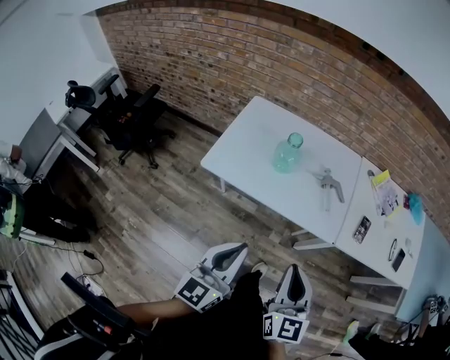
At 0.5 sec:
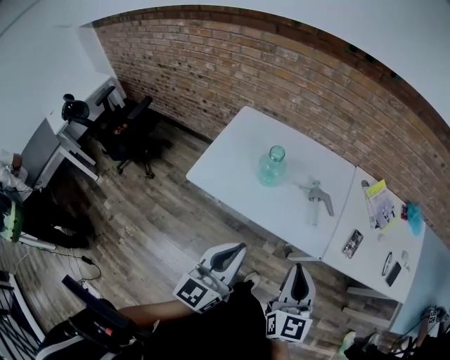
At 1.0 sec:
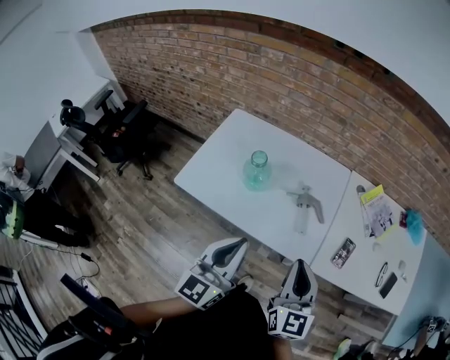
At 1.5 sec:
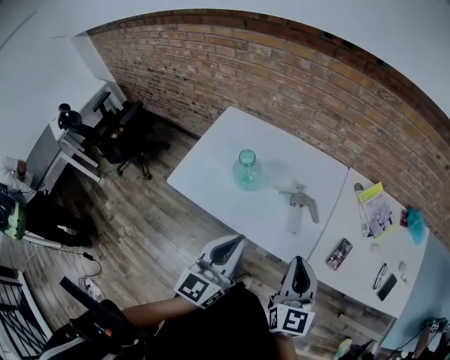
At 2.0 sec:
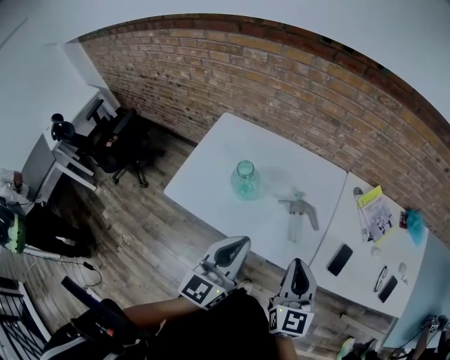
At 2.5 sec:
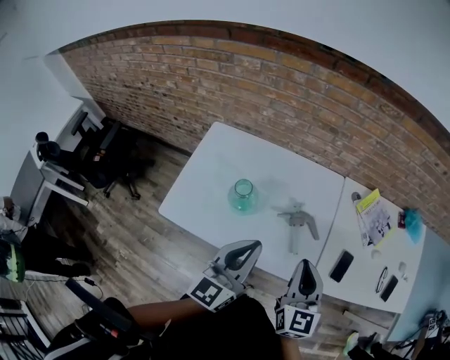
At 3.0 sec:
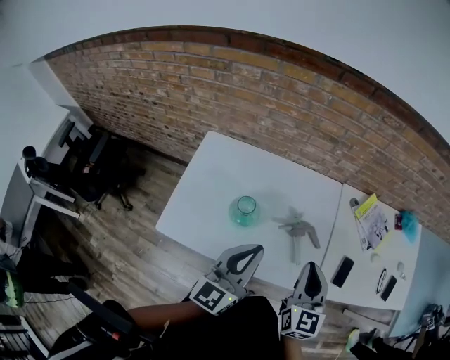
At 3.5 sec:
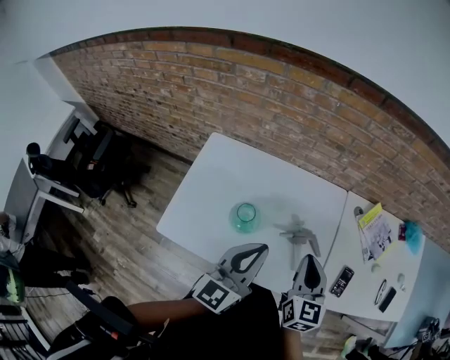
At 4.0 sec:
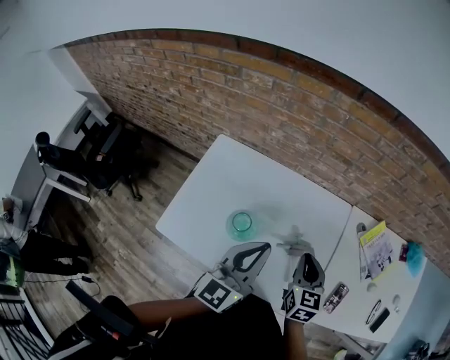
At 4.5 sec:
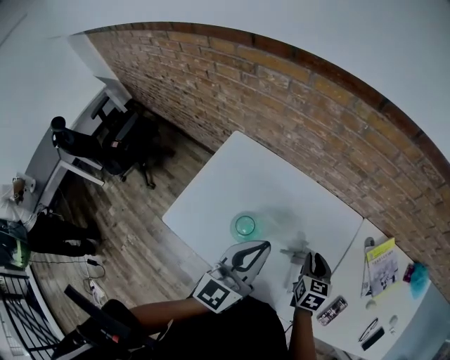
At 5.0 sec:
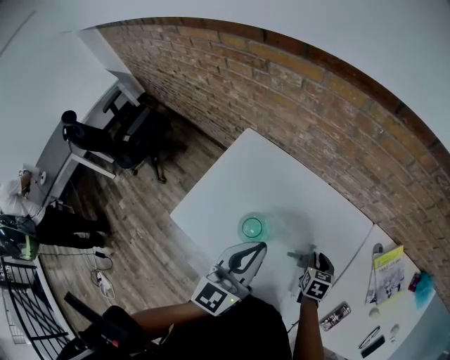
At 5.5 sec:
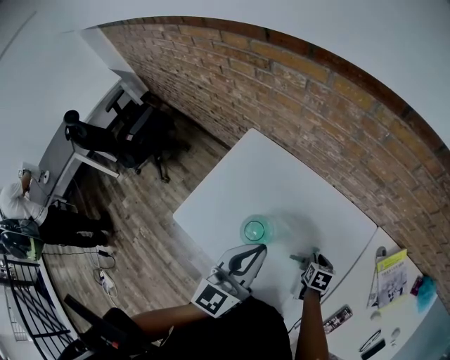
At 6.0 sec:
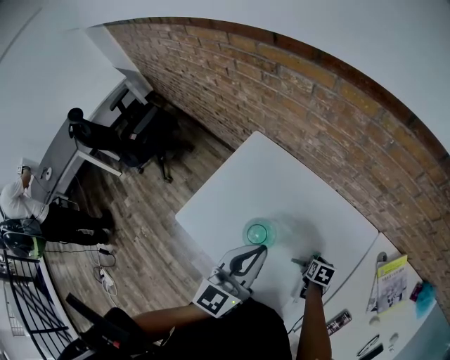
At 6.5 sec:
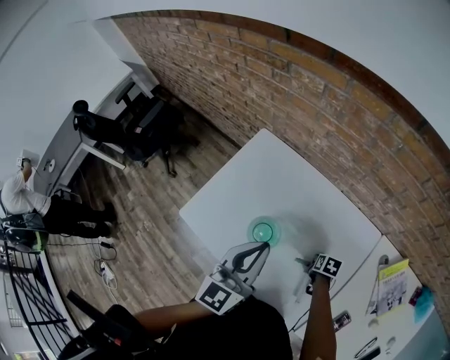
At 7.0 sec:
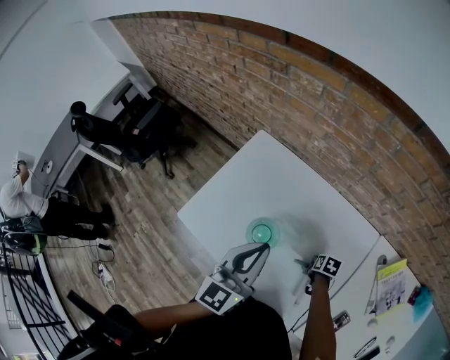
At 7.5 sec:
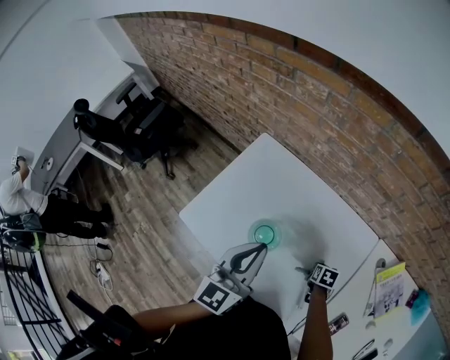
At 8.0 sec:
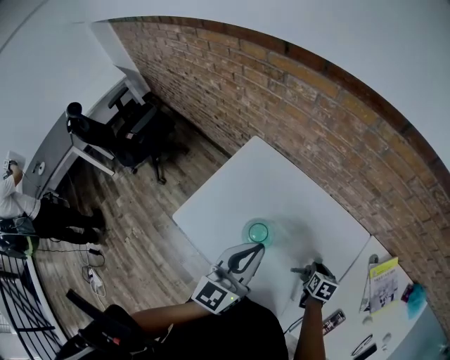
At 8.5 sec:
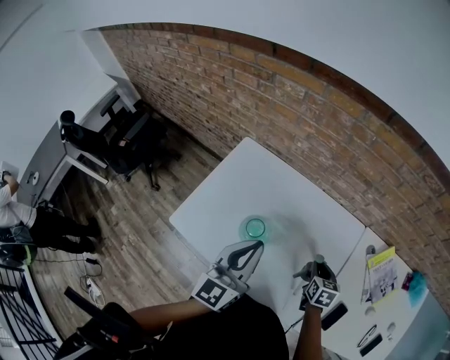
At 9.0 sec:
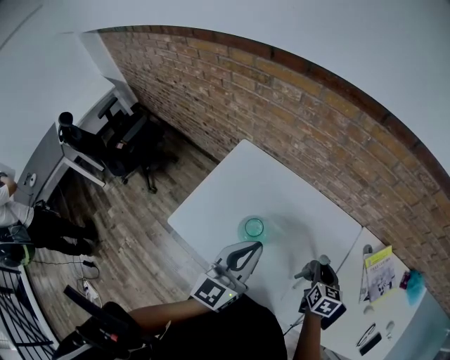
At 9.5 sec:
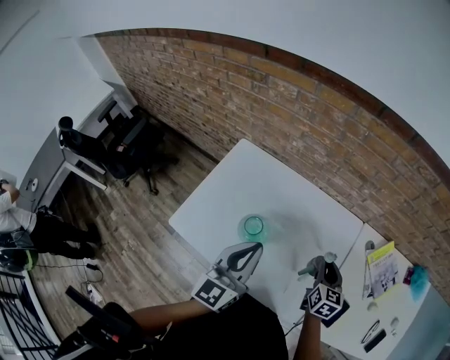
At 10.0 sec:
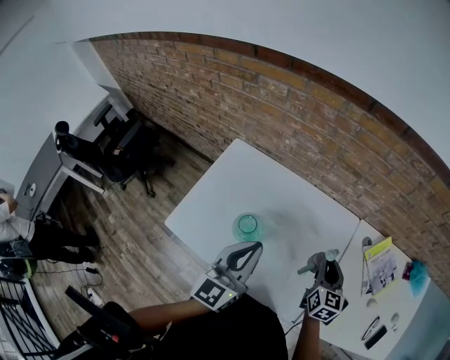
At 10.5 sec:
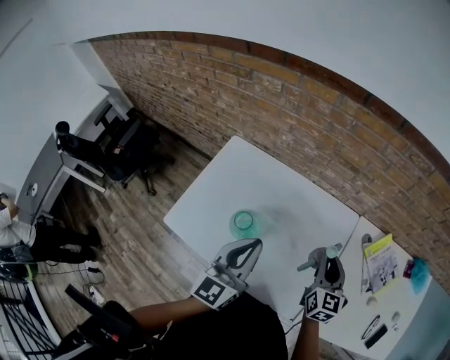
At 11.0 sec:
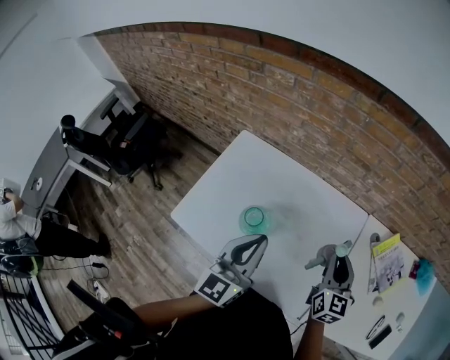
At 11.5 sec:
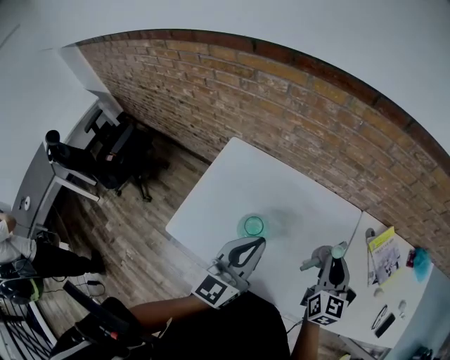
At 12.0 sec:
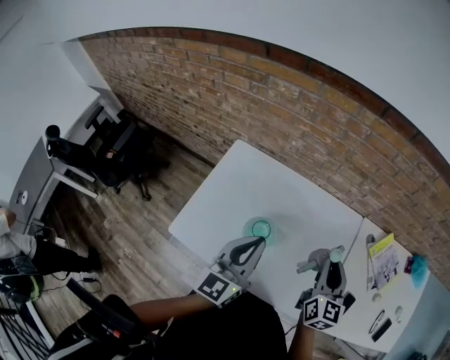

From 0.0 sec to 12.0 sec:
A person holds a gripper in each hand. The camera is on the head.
From 0.0 sec to 2.0 sec: The grippers both shift forward and to the right by about 25 cm.
From 2.0 sec to 4.0 sec: The two grippers go approximately 20 cm forward.
From 4.0 sec to 6.0 sec: The left gripper ends up some 5 cm from where it was. The right gripper is displaced downward by approximately 25 cm, and tips its fingers downward by roughly 40 degrees.
From 6.0 sec to 8.0 sec: The right gripper shifts roughly 5 cm upward.
From 8.0 sec to 10.0 sec: The right gripper travels upward by roughly 15 cm, and tips its fingers upward by approximately 30 degrees.
From 10.0 sec to 12.0 sec: The left gripper heads to the left, covering approximately 5 cm. The right gripper shifts approximately 10 cm upward and to the left.

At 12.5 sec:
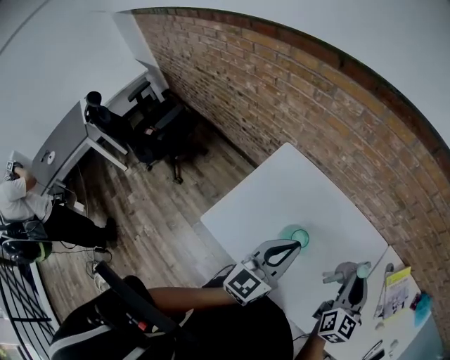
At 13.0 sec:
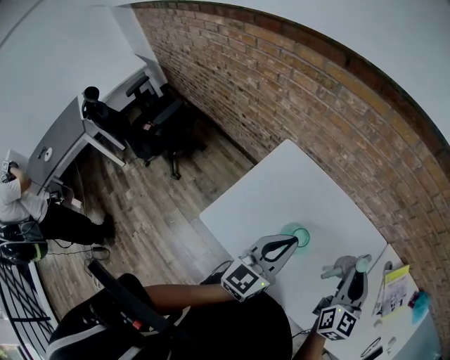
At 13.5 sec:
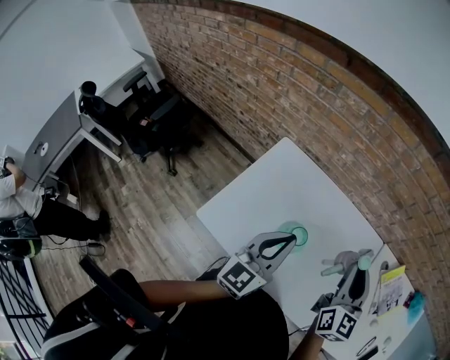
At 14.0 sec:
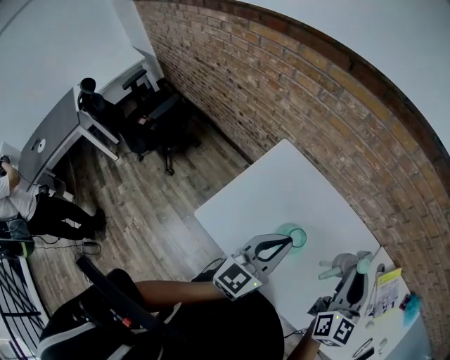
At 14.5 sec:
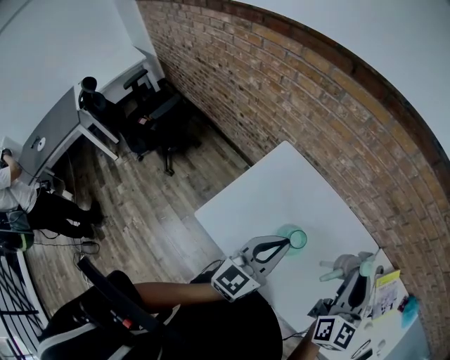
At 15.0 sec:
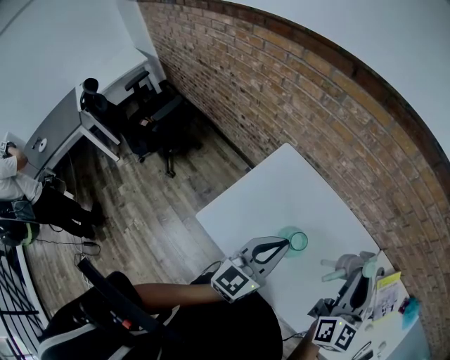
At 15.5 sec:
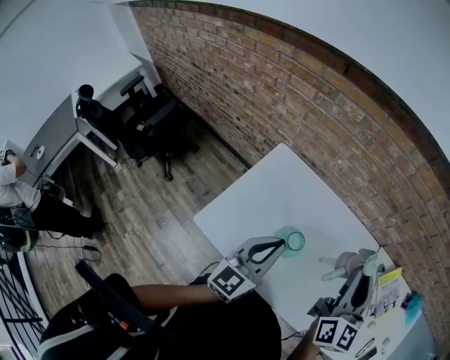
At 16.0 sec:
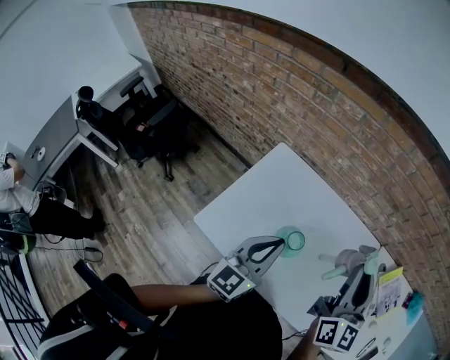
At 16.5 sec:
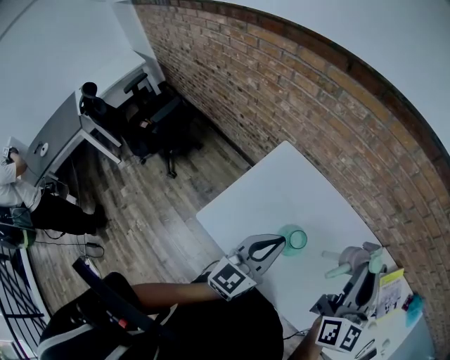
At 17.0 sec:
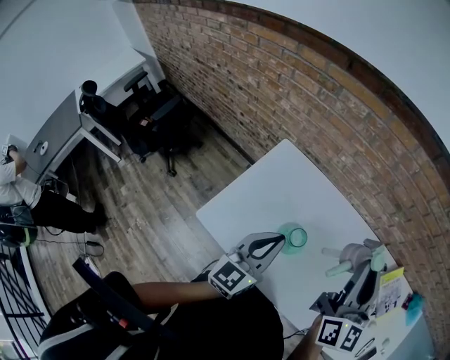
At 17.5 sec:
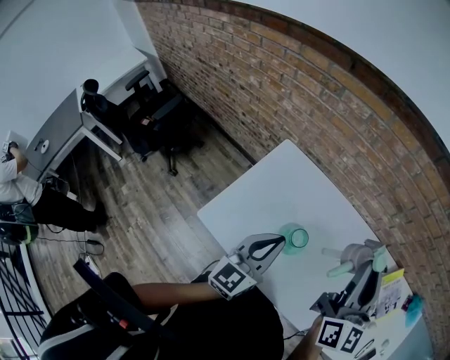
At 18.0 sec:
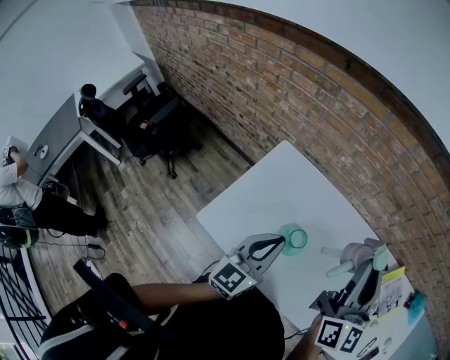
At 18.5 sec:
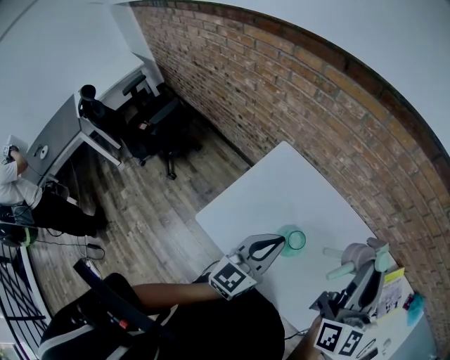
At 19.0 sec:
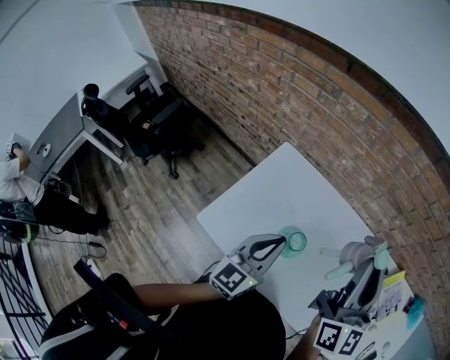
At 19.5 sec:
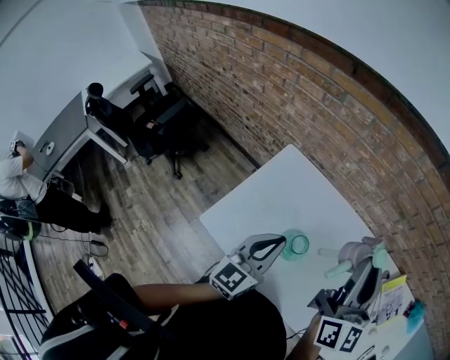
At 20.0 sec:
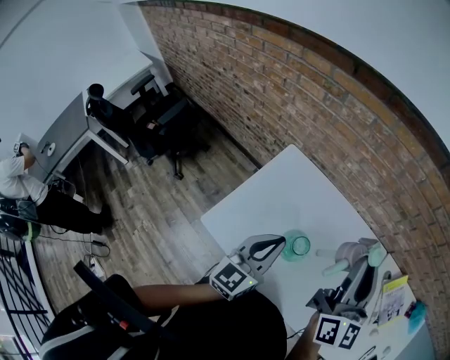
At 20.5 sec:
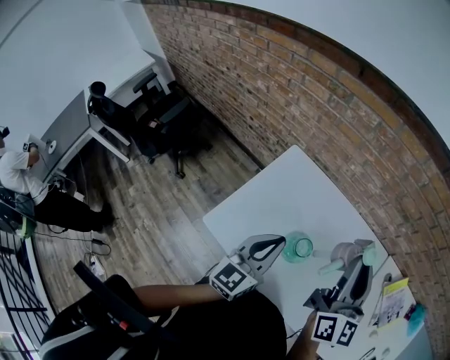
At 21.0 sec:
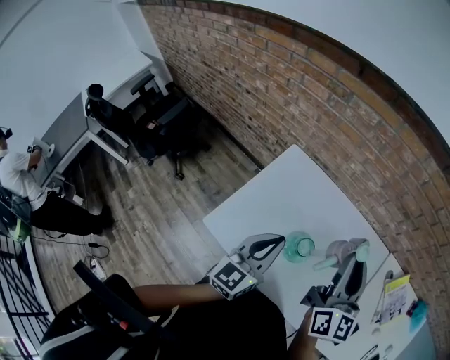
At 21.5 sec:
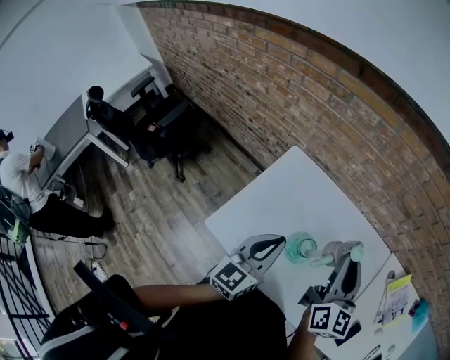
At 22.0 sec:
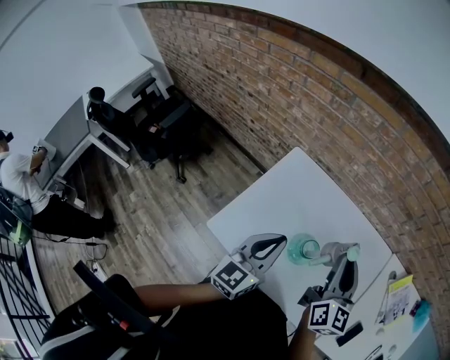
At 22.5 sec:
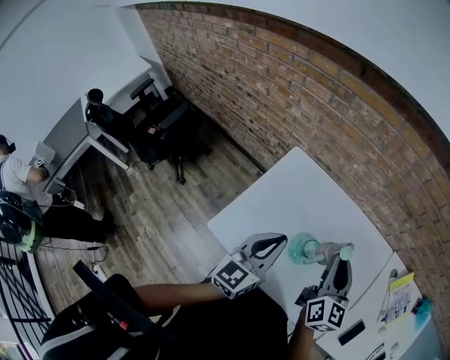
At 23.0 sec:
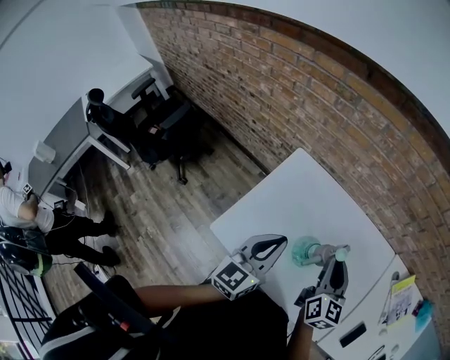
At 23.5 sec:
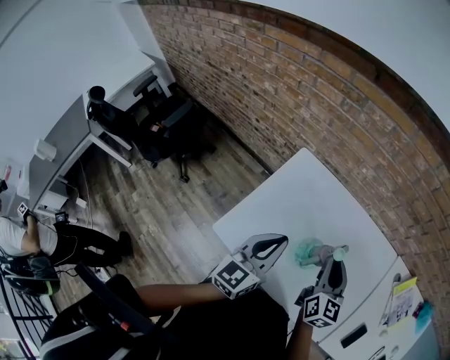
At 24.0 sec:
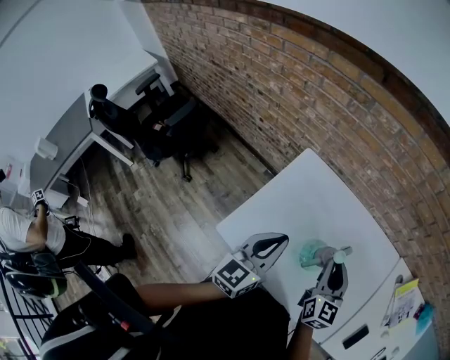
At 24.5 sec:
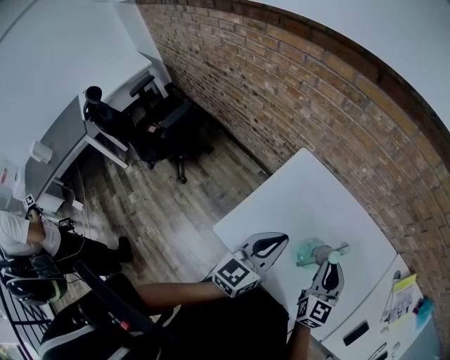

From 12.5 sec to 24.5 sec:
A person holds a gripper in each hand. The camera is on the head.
From 12.5 sec to 14.5 sec: The right gripper is displaced upward and to the left by some 10 cm.
From 14.5 sec to 16.5 sec: There are only small adjustments of the grippers.
From 16.5 sec to 18.5 sec: The grippers make only small movements.
From 18.5 sec to 20.5 sec: The right gripper goes roughly 5 cm downward.
From 20.5 sec to 22.5 sec: The right gripper is displaced downward by approximately 10 cm.
From 22.5 sec to 24.5 sec: The right gripper moves downward, approximately 5 cm.

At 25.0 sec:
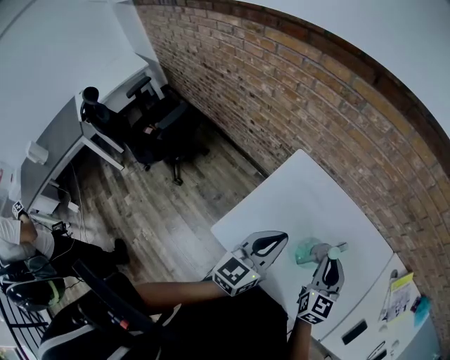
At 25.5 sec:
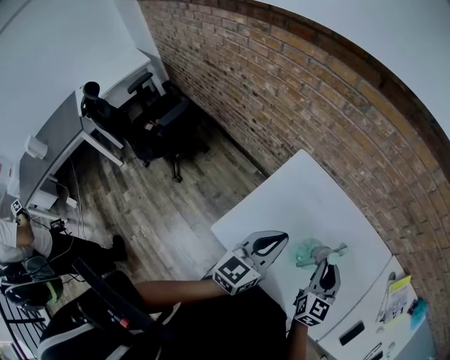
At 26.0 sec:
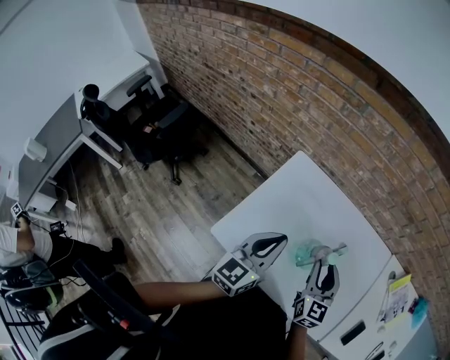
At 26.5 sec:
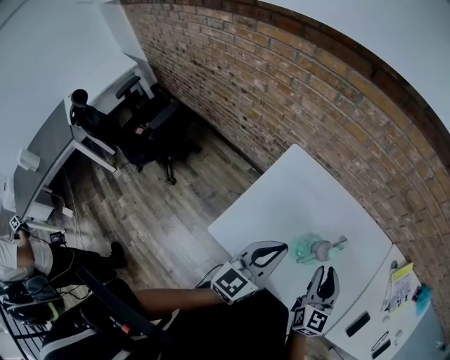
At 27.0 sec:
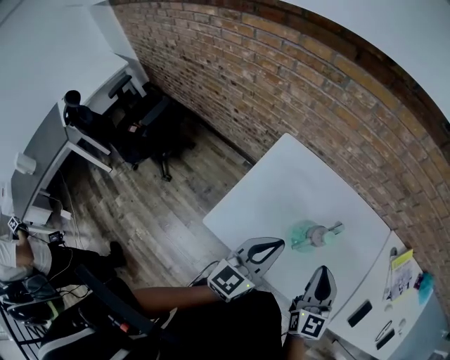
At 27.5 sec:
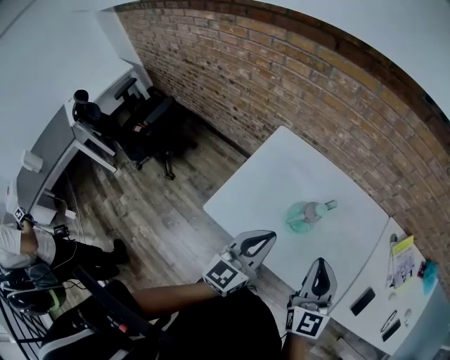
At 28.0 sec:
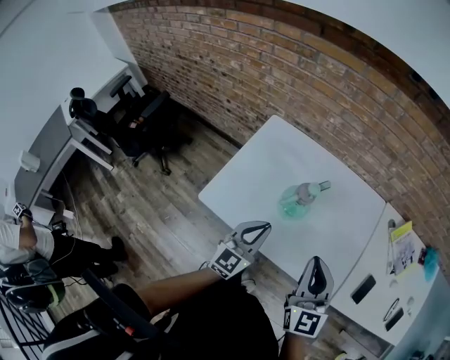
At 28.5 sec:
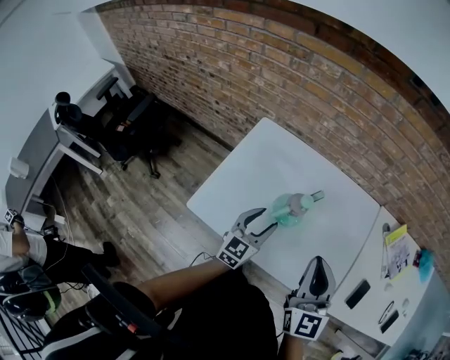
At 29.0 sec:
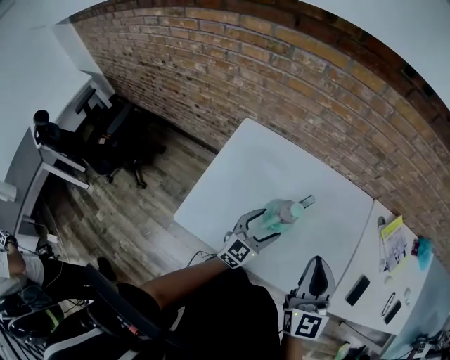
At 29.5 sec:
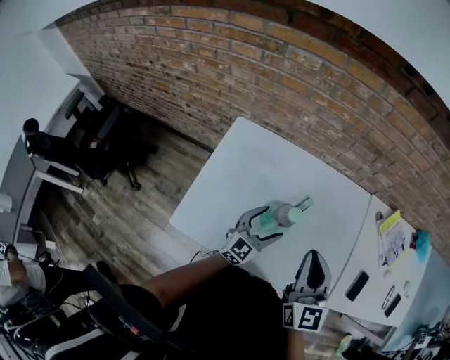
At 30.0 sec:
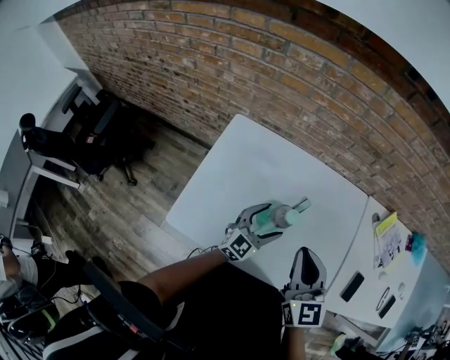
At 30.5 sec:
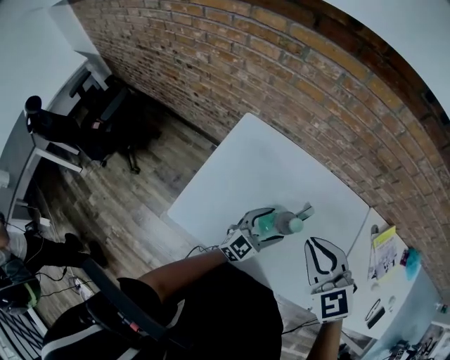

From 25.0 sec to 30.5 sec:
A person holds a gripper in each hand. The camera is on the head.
From 25.0 sec to 27.0 sec: The left gripper ends up approximately 5 cm from where it was. Meanwhile the right gripper goes roughly 10 cm backward.
From 27.0 sec to 28.5 sec: The left gripper goes approximately 15 cm downward and to the right. The right gripper ends up some 10 cm from where it was.
From 28.5 sec to 30.5 sec: The right gripper heads forward and to the left, covering about 10 cm, and swivels roughly 40 degrees. The left gripper is displaced forward and to the right by roughly 10 cm.
